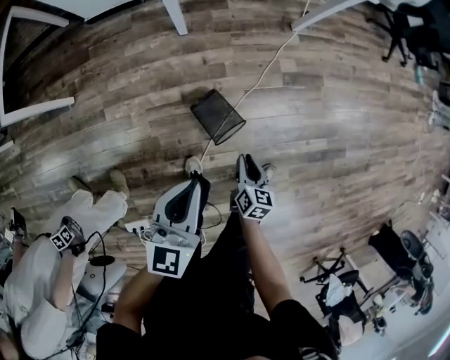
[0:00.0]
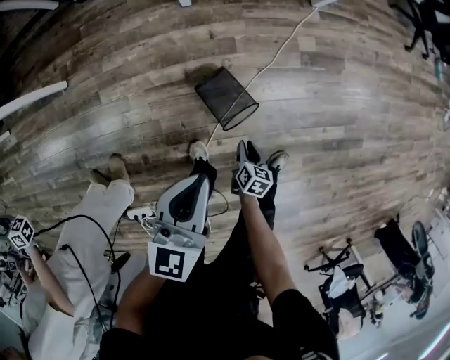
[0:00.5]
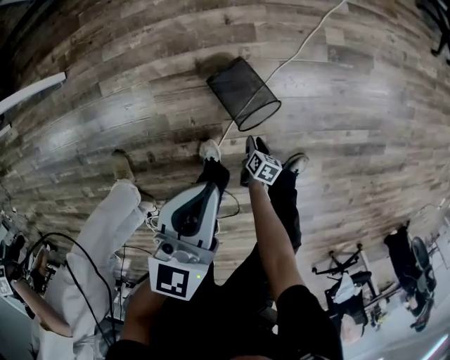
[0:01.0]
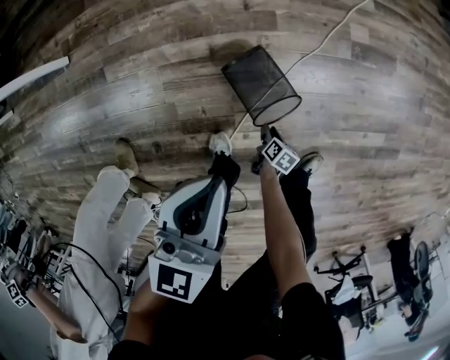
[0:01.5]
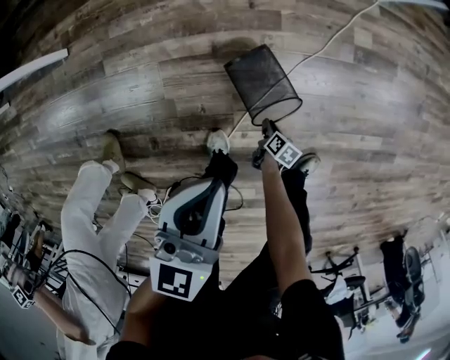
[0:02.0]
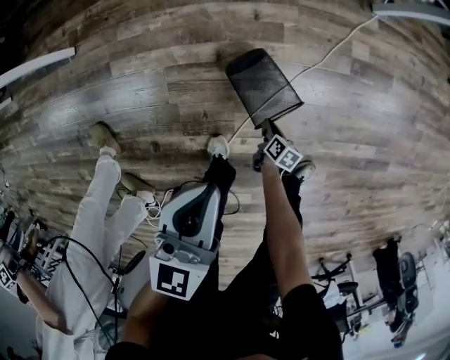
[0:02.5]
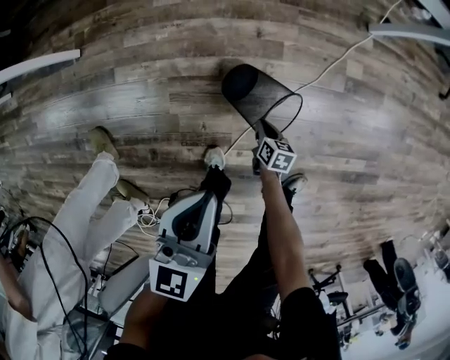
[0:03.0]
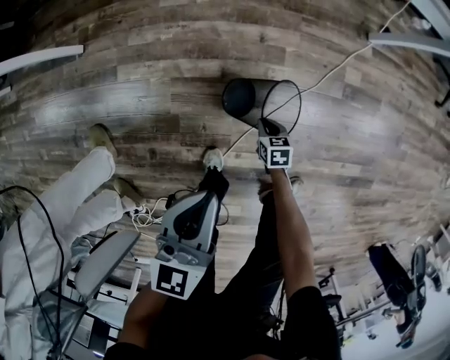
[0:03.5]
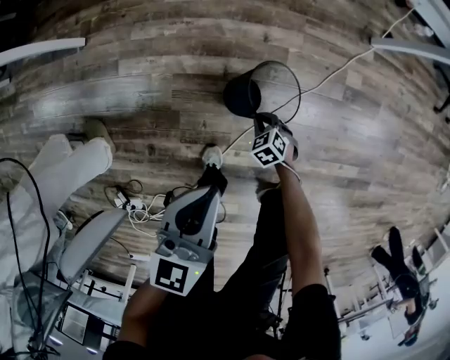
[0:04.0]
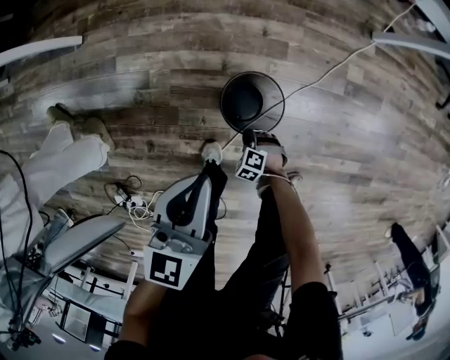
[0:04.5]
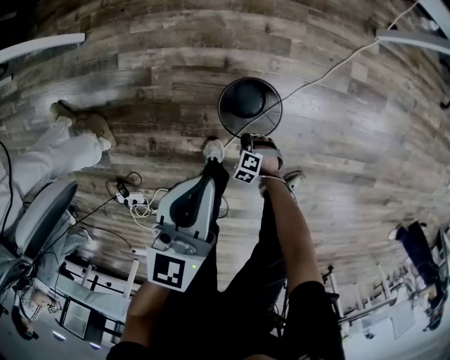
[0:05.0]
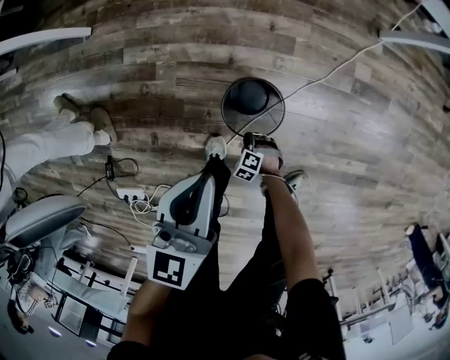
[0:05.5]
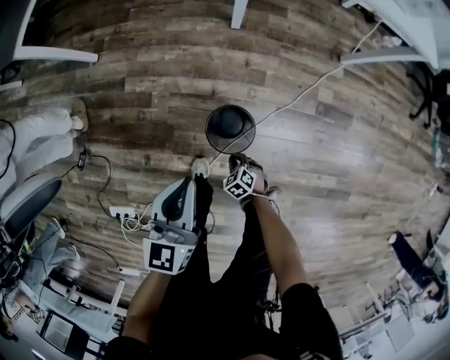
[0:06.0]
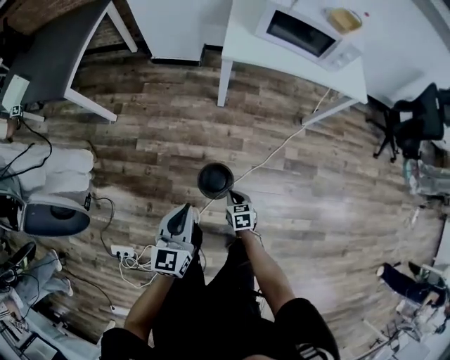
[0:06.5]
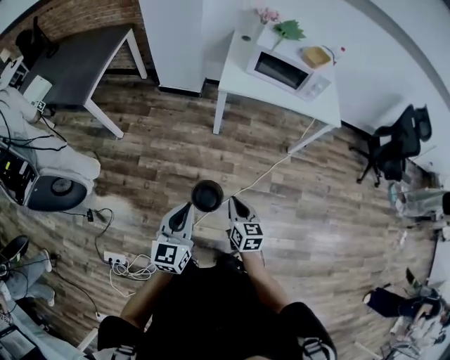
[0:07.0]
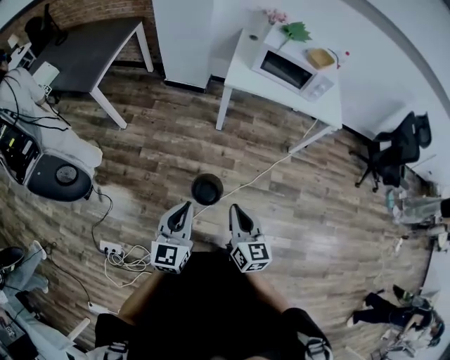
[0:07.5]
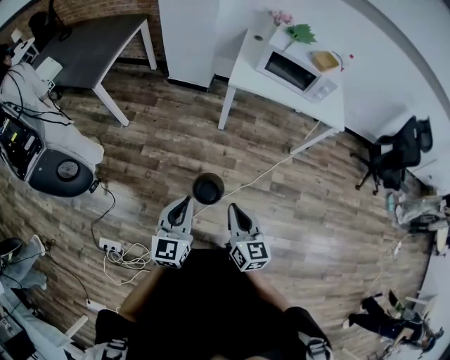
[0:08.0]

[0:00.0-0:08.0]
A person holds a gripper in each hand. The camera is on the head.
0:00.0 to 0:02.0: The right gripper goes some 40 cm downward, and turns by approximately 30 degrees. Meanwhile the left gripper heads downward, covering about 20 cm.
0:02.0 to 0:04.0: The left gripper moves to the left, roughly 5 cm. The right gripper travels forward, upward and to the left by about 20 cm, and rotates around the line of its fingers by approximately 90 degrees, counterclockwise from behind.
0:04.0 to 0:06.0: The right gripper moves roughly 15 cm. Meanwhile the left gripper is displaced upward by roughly 5 cm.
0:06.0 to 0:08.0: The right gripper is displaced upward by approximately 70 cm, and tilts its fingers some 50 degrees upward; the left gripper is displaced upward by some 30 cm.

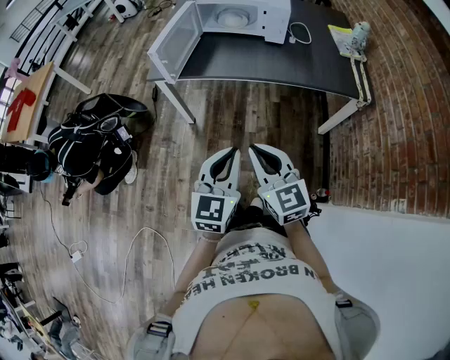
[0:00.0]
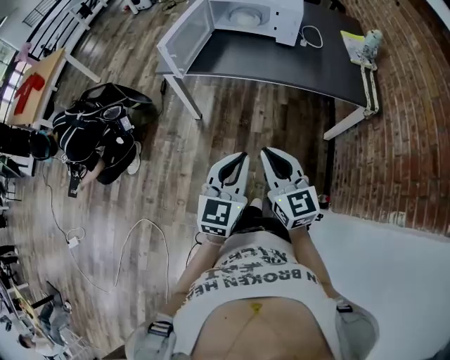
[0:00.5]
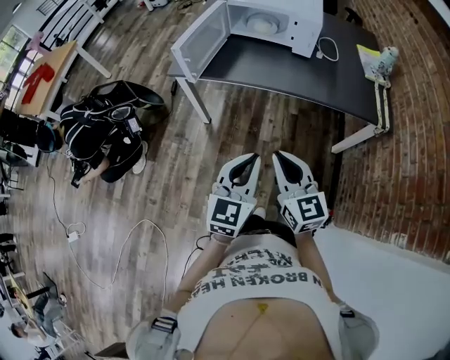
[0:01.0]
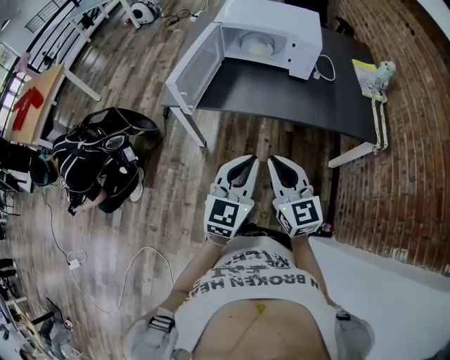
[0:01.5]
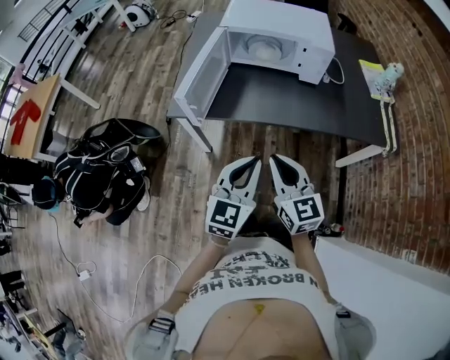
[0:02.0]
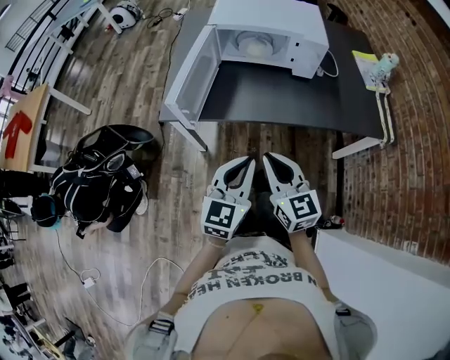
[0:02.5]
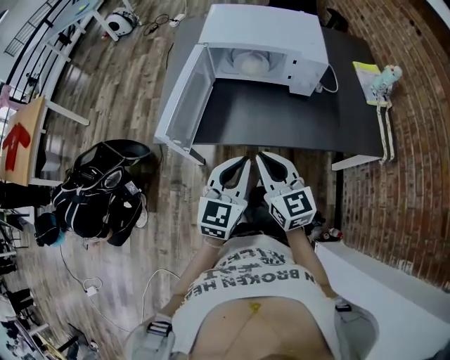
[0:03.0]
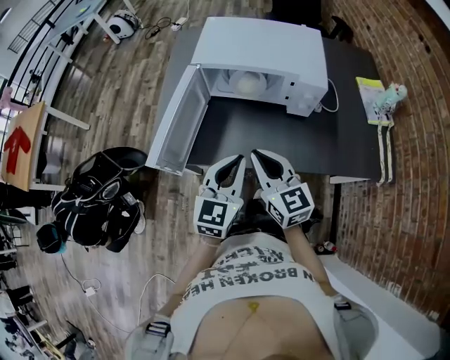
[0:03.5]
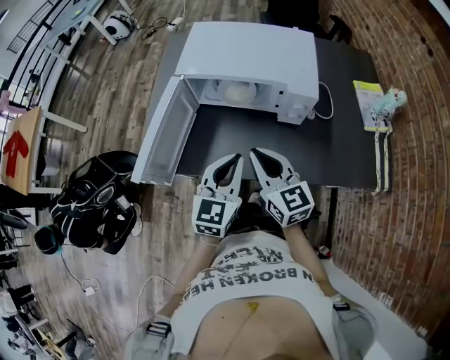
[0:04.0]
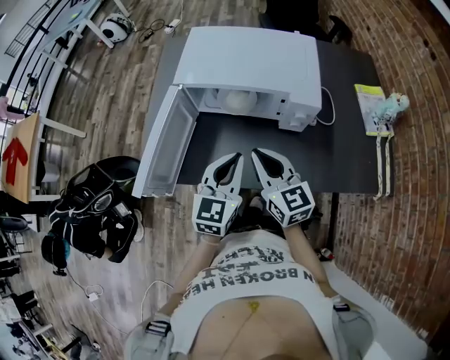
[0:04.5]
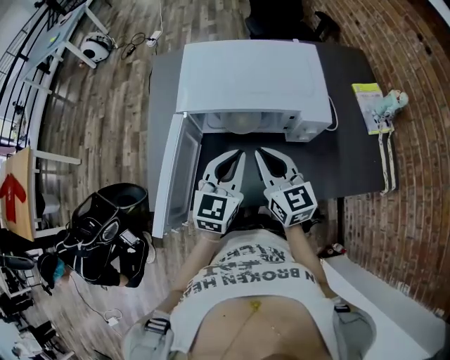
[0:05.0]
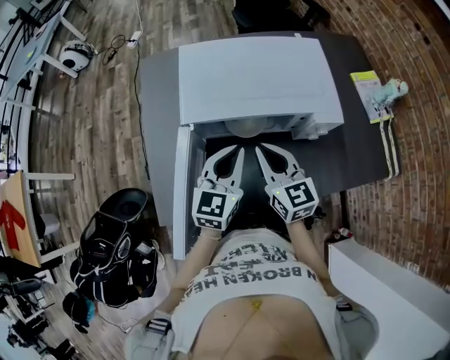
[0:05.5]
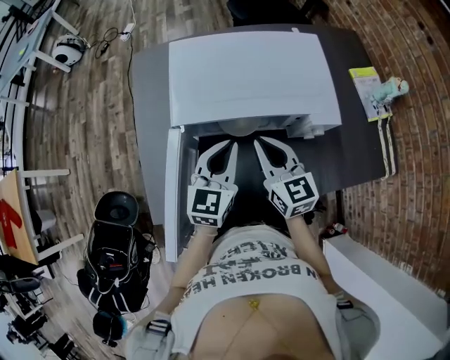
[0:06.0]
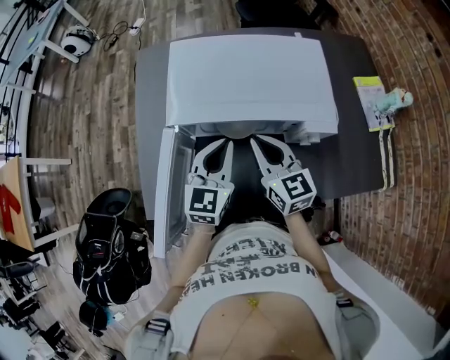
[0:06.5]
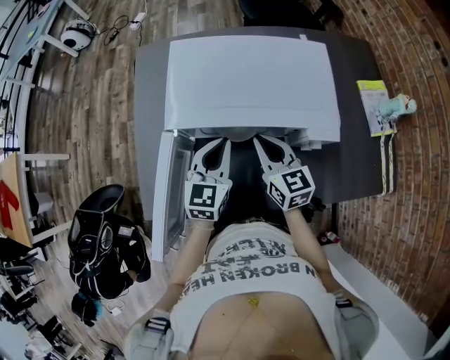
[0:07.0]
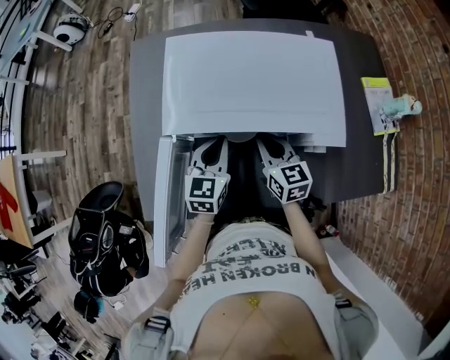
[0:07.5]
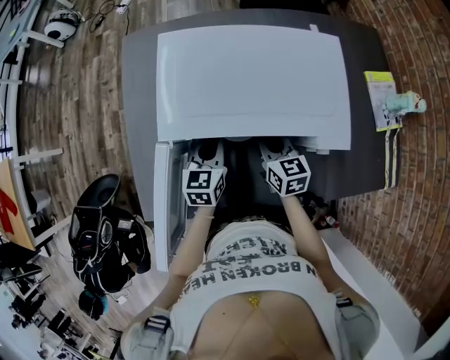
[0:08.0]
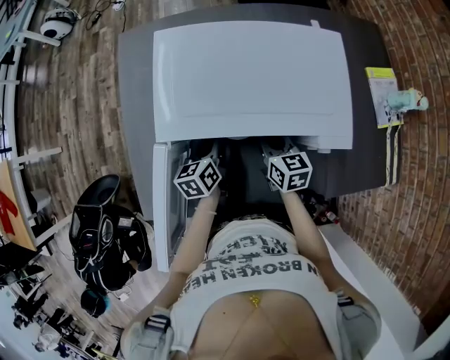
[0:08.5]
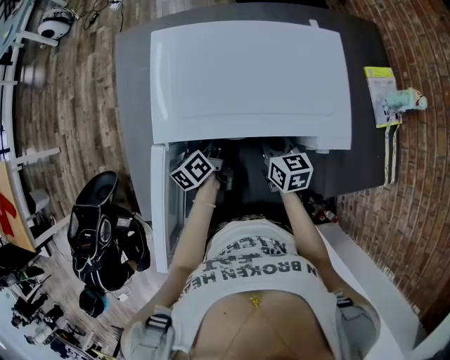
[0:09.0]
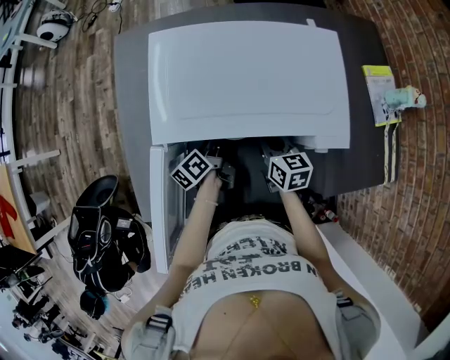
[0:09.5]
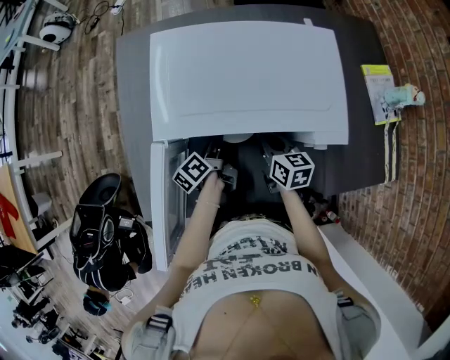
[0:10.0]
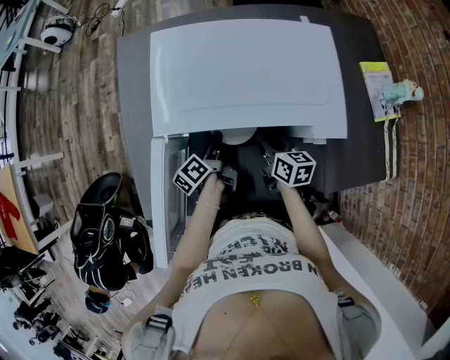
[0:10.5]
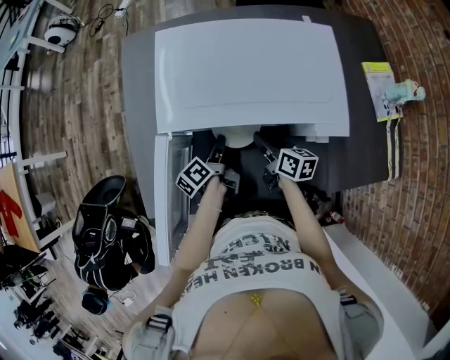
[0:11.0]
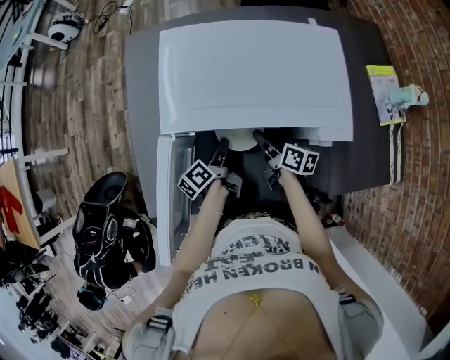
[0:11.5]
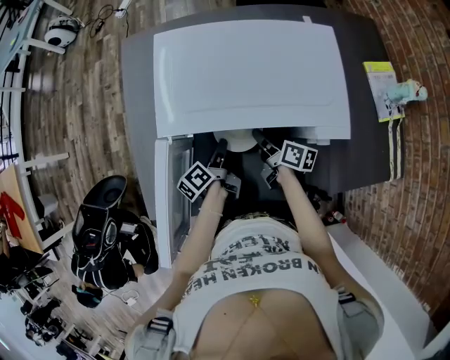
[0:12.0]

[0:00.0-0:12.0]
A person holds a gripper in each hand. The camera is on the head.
0:00.0 to 0:02.0: Both grippers move forward, about 20 cm.
0:02.0 to 0:04.0: The two grippers go approximately 25 cm forward.
0:04.0 to 0:06.0: The left gripper travels forward and to the left by some 20 cm. The right gripper shifts some 20 cm forward.
0:06.0 to 0:08.0: Both grippers move downward and forward, roughly 15 cm.
0:08.0 to 0:10.0: The left gripper is displaced downward by approximately 5 cm, and rolls counterclockwise, seen from behind, by approximately 60 degrees.
0:10.0 to 0:12.0: The right gripper turns by some 30 degrees.

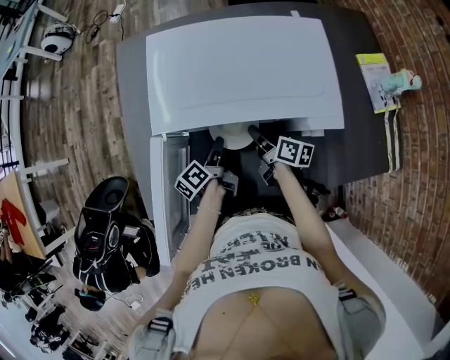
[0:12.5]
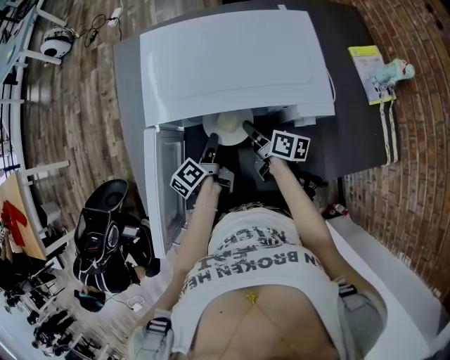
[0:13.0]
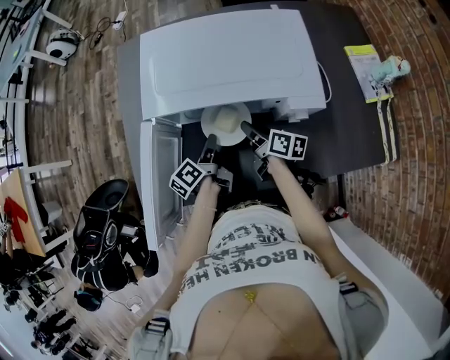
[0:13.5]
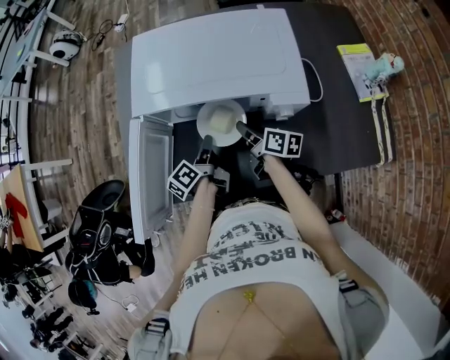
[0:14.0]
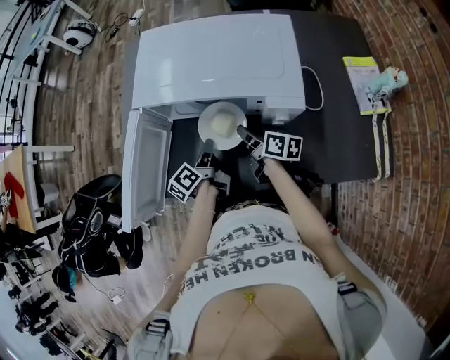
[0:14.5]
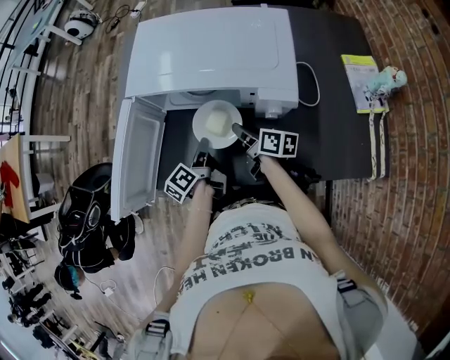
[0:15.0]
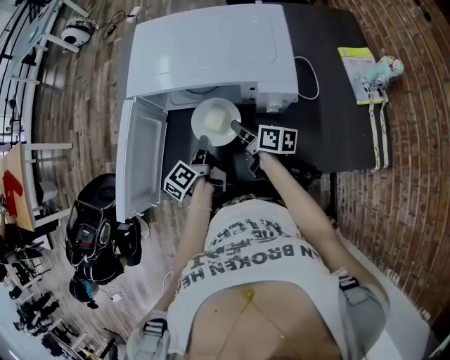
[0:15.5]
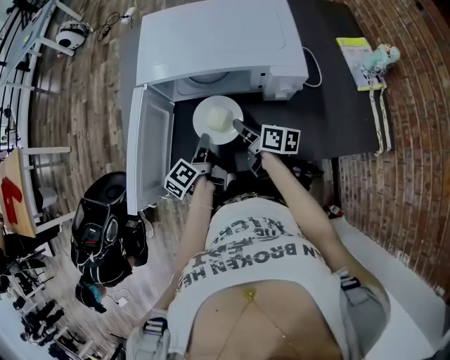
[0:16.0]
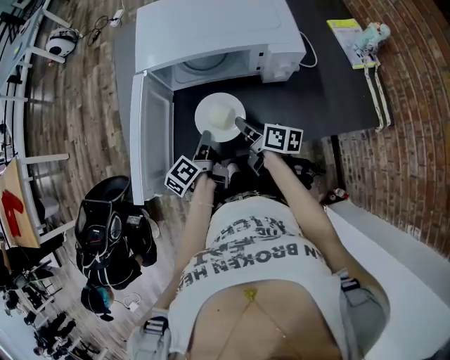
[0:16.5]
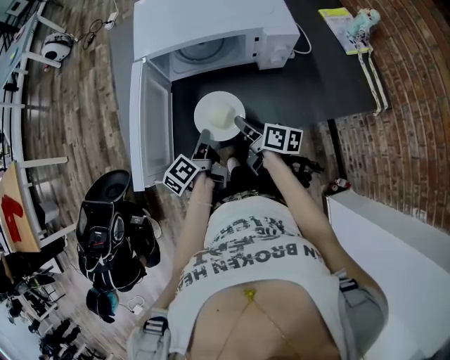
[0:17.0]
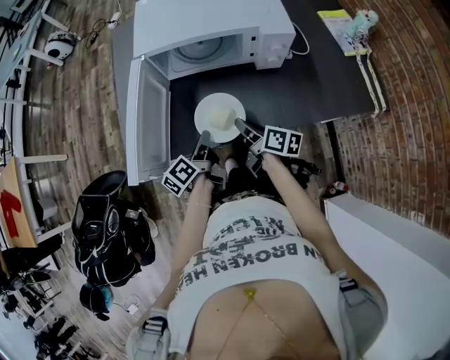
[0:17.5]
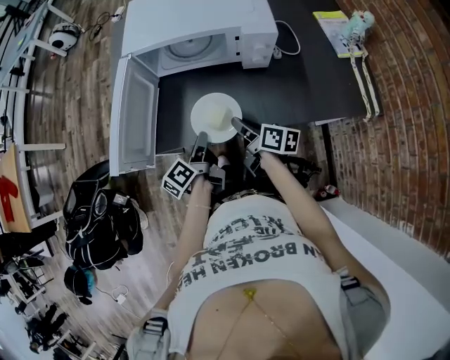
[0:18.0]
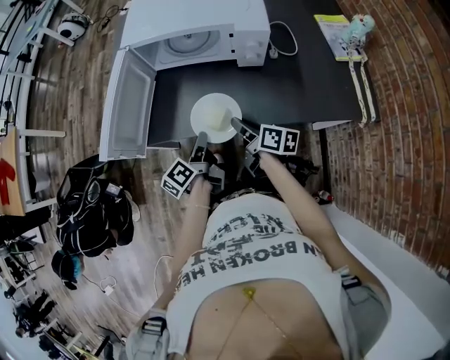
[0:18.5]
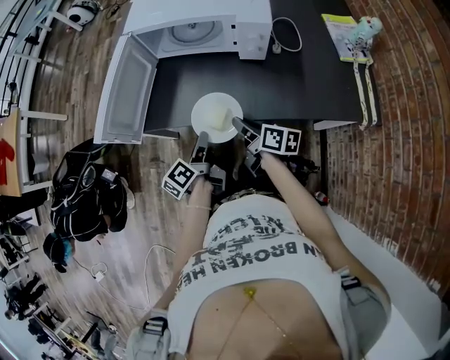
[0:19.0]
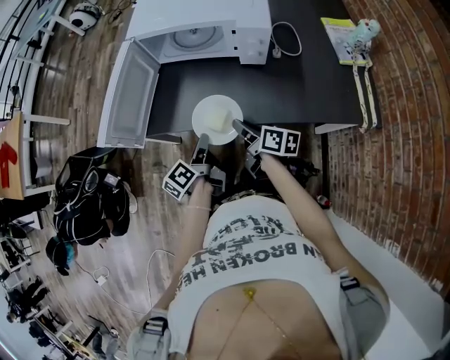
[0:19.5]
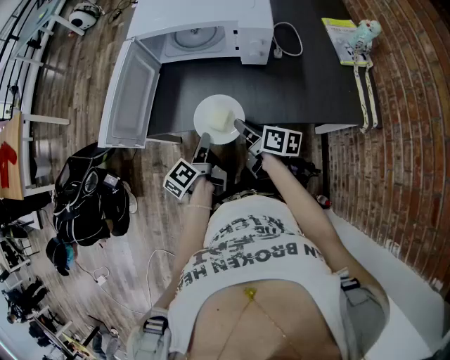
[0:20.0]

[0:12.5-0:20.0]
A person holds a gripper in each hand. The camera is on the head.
0:12.5 to 0:14.5: The grippers both shift backward by approximately 5 cm.
0:14.5 to 0:16.5: The grippers both shift backward and to the left by approximately 10 cm.
0:16.5 to 0:18.0: Both grippers move backward, roughly 10 cm.
0:18.0 to 0:20.0: The right gripper ends up some 5 cm from where it was. The left gripper shifts some 5 cm backward.
